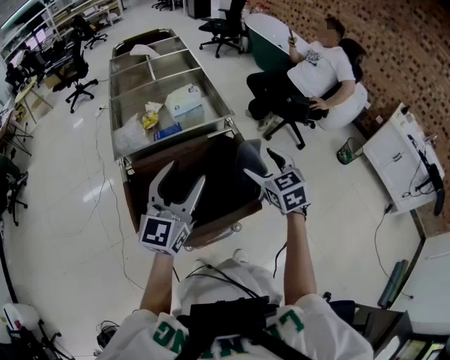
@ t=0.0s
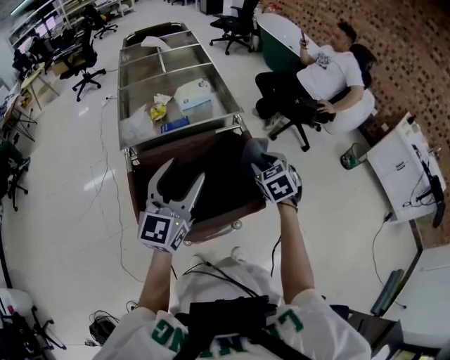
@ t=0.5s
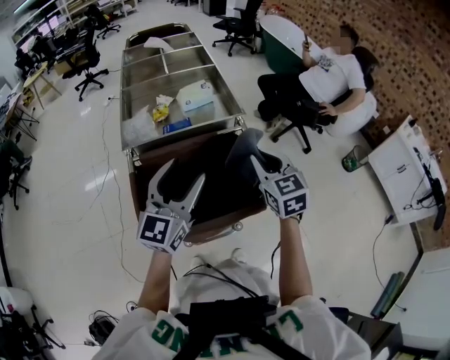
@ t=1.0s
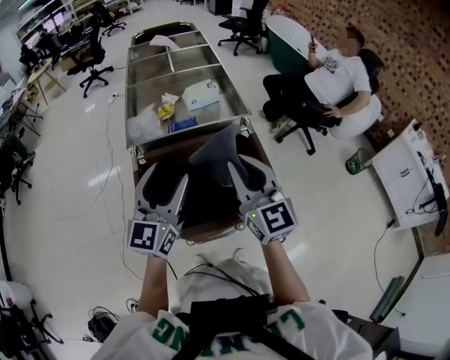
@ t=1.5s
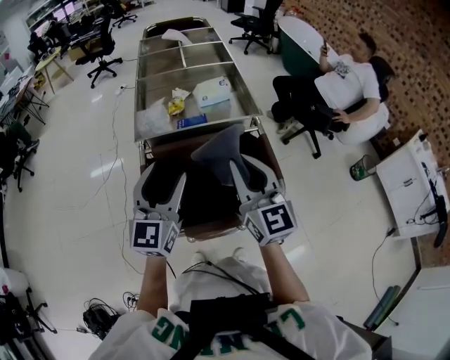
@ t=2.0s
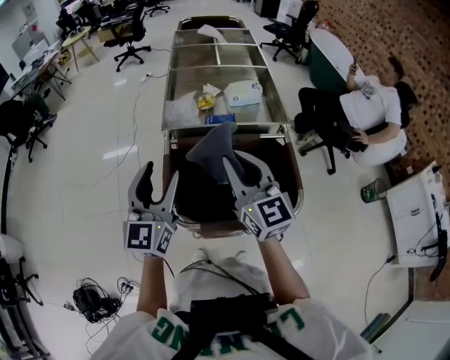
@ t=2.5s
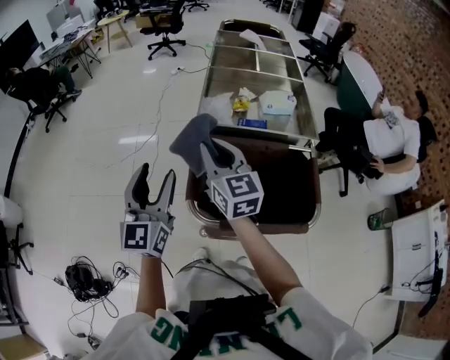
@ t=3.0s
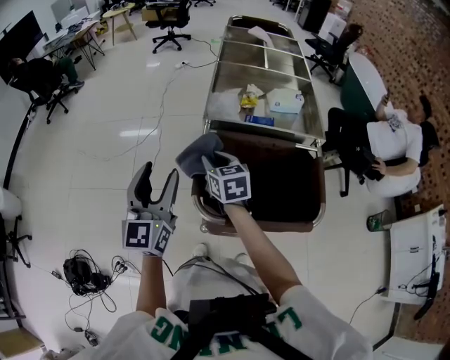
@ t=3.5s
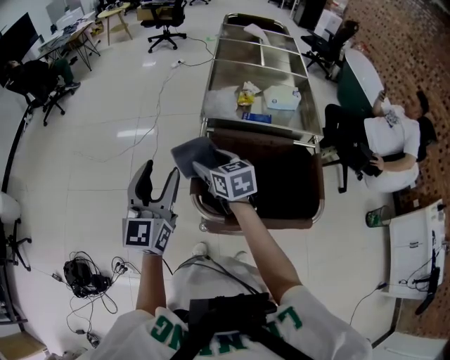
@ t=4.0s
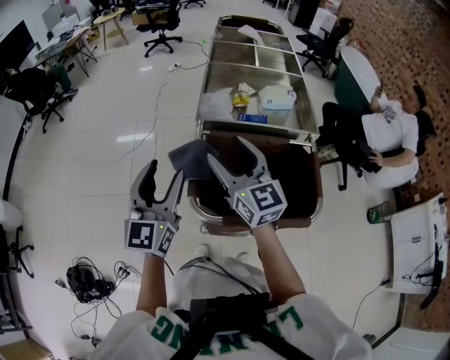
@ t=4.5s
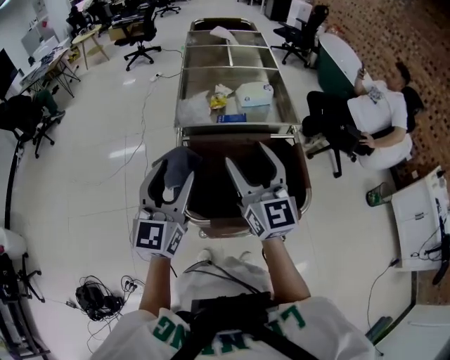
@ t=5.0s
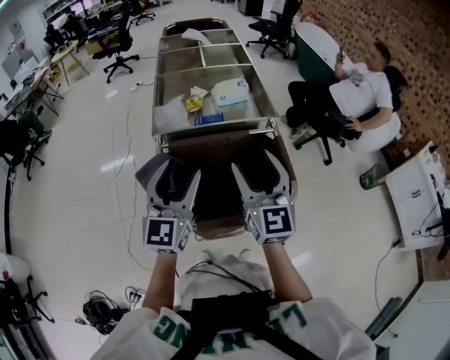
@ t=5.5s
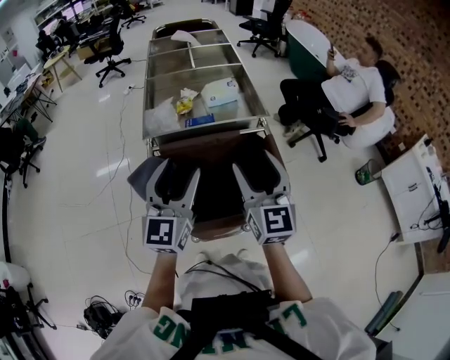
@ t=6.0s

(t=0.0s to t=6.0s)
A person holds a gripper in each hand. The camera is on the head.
t=0.0s - t=2.0s: The right gripper shifts some 20 cm to the left and upward, angles its fingers upward, by about 40 degrees, and closes up. Meanwhile the left gripper shifts about 10 cm to the left.
t=2.0s - t=4.0s: The right gripper ends up about 30 cm from where it was, tilts its fingers about 40 degrees downward, and opens up; the left gripper moves approximately 20 cm, and turns by roughly 20 degrees.
t=4.0s - t=6.0s: The right gripper moves some 30 cm, and tips its fingers upward by about 30 degrees. The left gripper ends up approximately 20 cm from where it was, and turns by roughly 20 degrees.

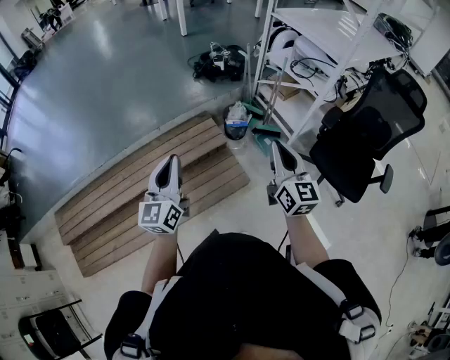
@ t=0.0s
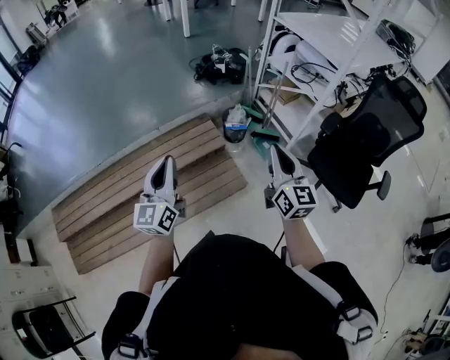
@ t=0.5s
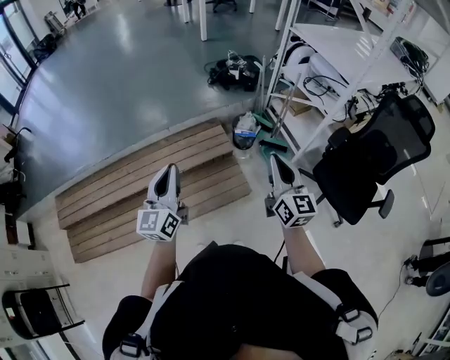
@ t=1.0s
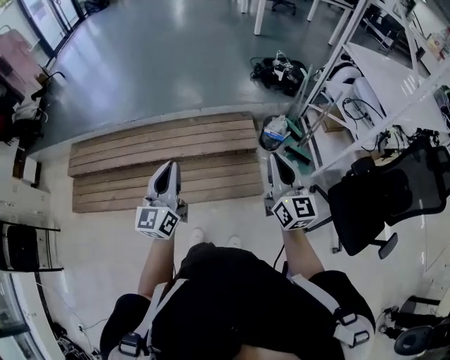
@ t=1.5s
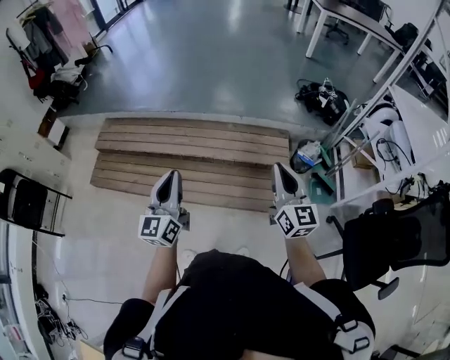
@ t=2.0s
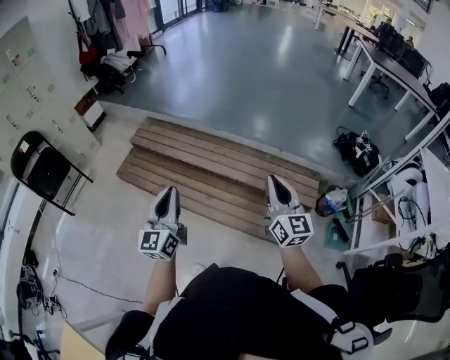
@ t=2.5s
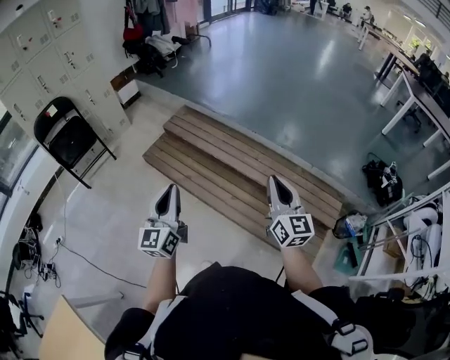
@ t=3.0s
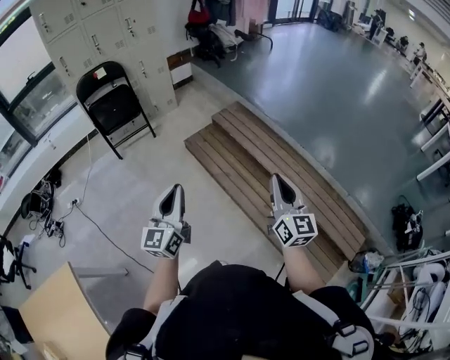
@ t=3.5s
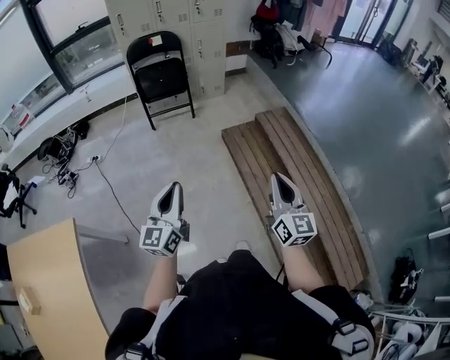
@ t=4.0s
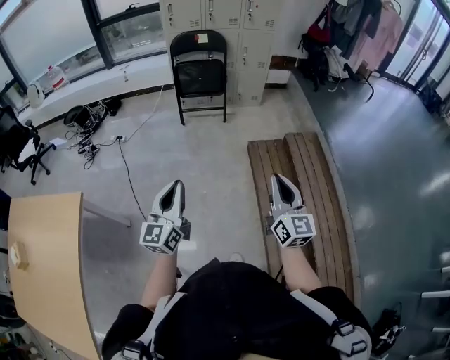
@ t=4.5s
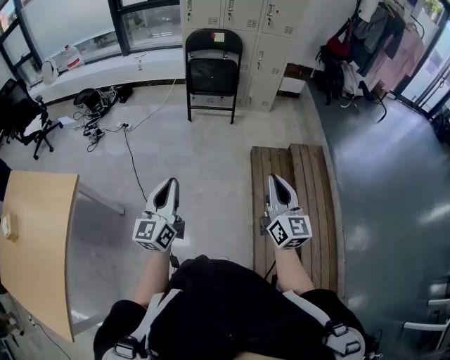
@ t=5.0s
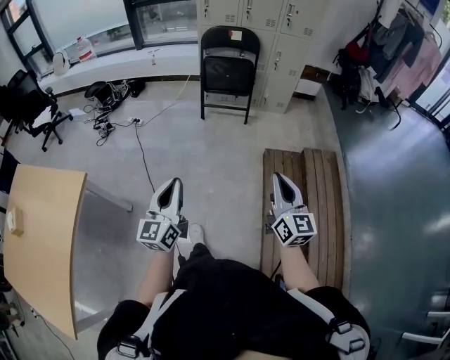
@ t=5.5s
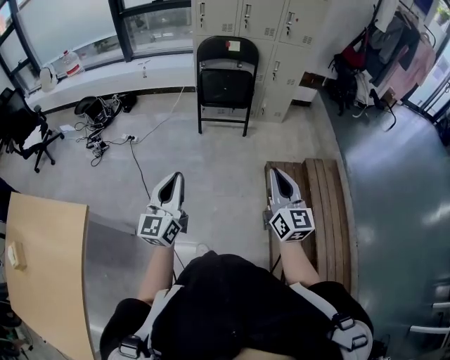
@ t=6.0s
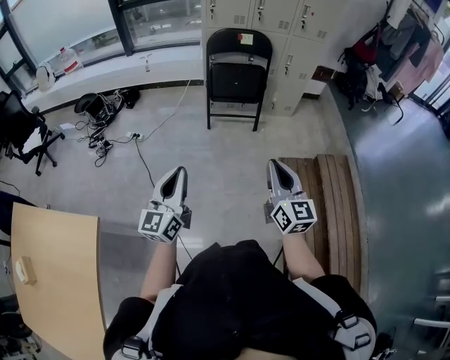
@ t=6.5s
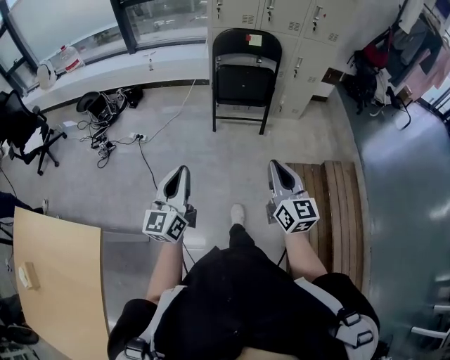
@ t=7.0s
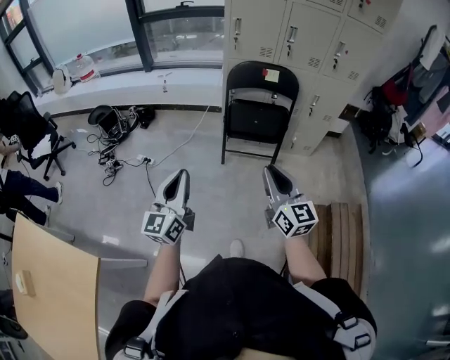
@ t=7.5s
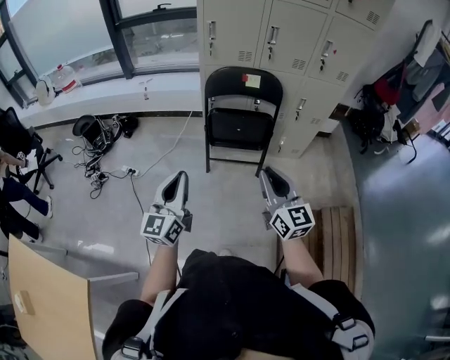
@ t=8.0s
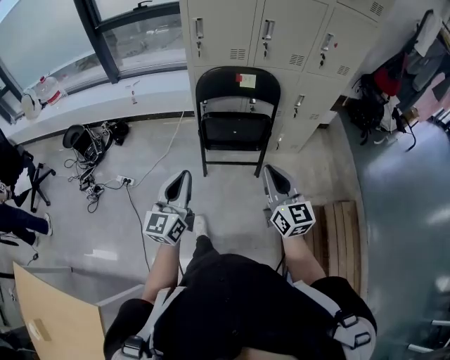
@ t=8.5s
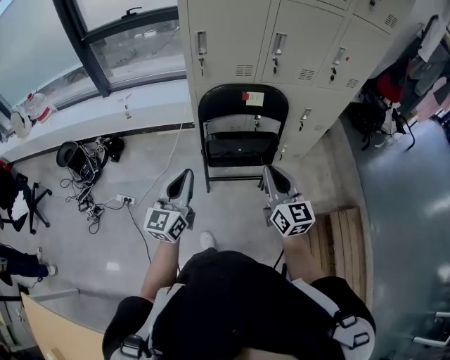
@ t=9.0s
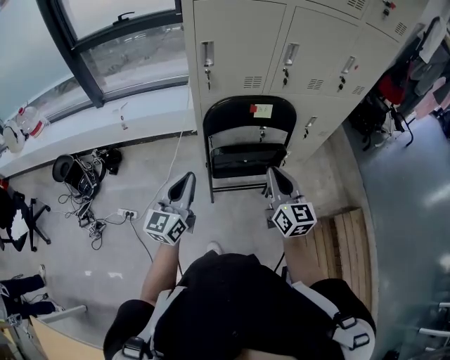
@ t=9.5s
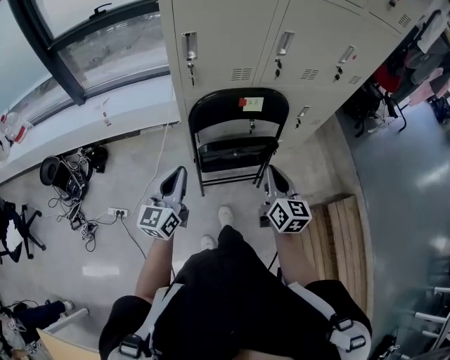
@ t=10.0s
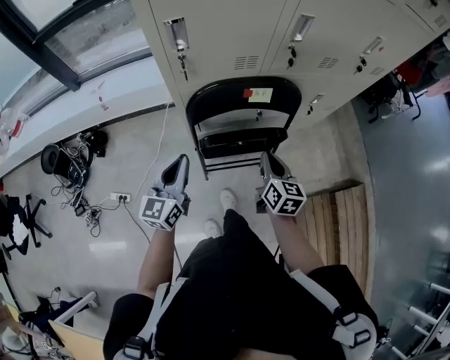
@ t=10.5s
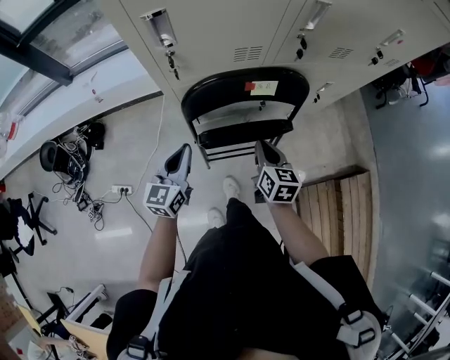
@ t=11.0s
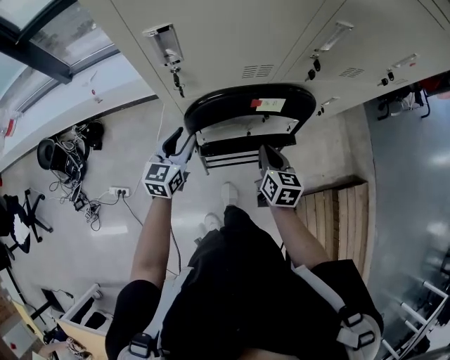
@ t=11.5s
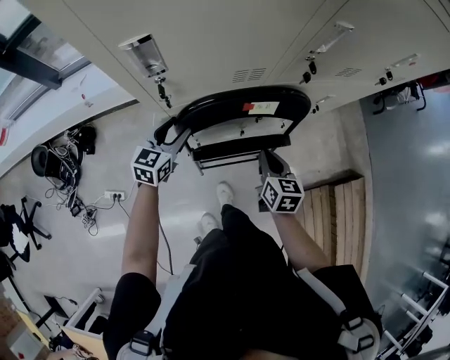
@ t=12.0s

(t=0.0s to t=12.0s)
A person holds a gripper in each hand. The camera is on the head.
t=0.0s - t=2.0s: The left gripper changes place by roughly 25 cm, and rotates some 40 degrees, while the right gripper moves some 20 cm, and swivels some 40 degrees.
t=2.0s - t=4.0s: Both grippers are carried roughly 60 cm. The right gripper turns by approximately 60 degrees. The left gripper rotates approximately 60 degrees.
t=4.0s - t=6.0s: Both grippers move forward and to the left, roughly 25 cm. The right gripper rotates roughly 20 degrees.
t=6.0s - t=8.0s: The two grippers go some 40 cm forward.
t=8.0s - t=10.0s: Both grippers travel together forward, some 35 cm. The right gripper rotates some 30 degrees. The left gripper swivels about 20 degrees.
t=10.0s - t=12.0s: The two grippers go about 25 cm forward and downward. The right gripper changes its angle by some 20 degrees. Meanwhile the left gripper turns by about 30 degrees, and opens.

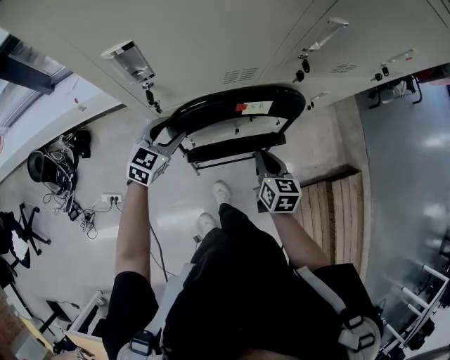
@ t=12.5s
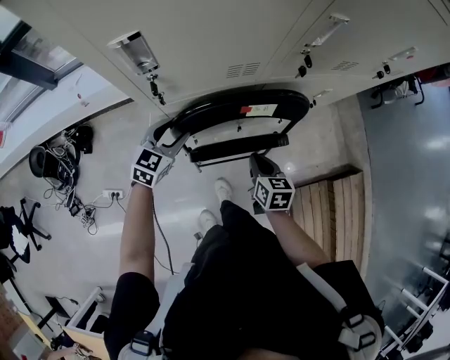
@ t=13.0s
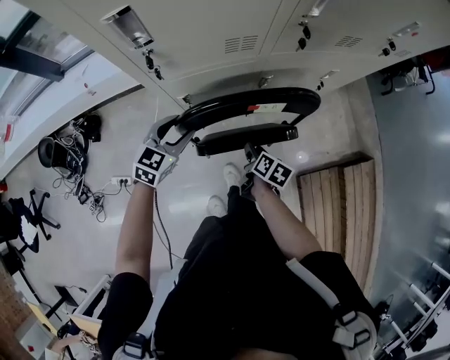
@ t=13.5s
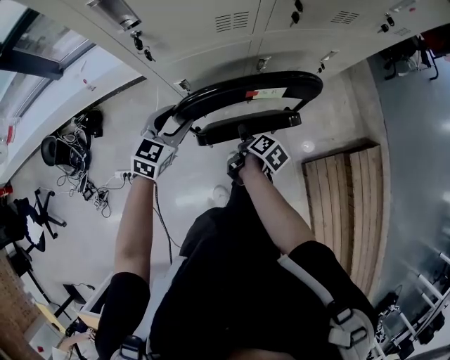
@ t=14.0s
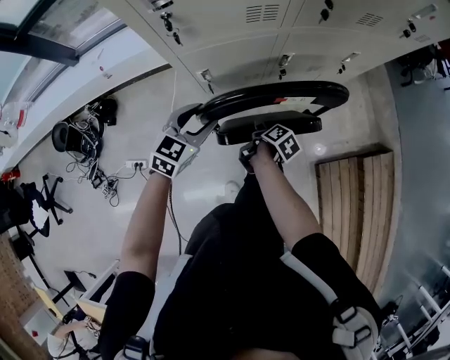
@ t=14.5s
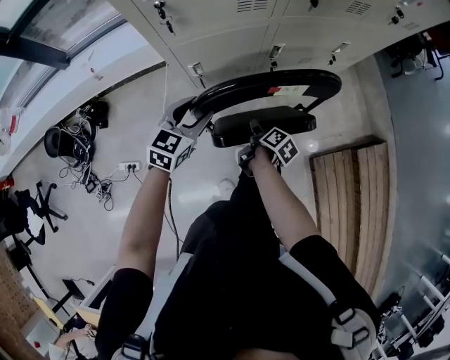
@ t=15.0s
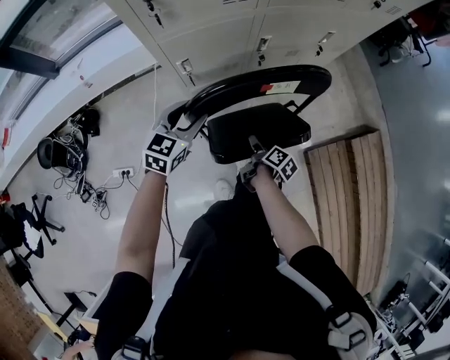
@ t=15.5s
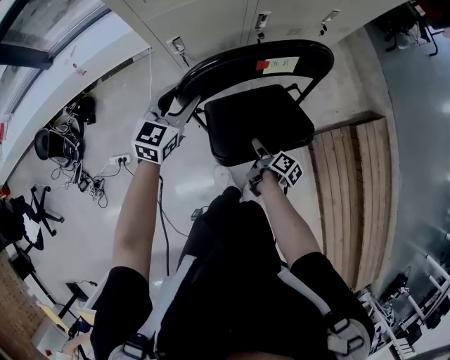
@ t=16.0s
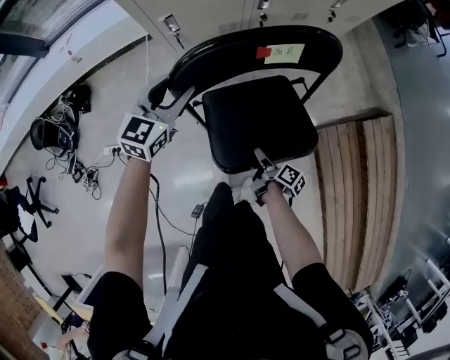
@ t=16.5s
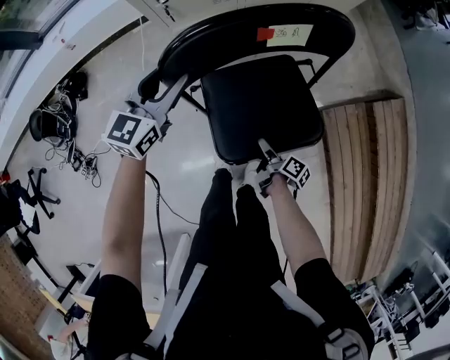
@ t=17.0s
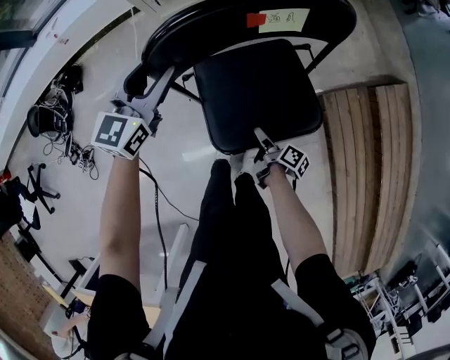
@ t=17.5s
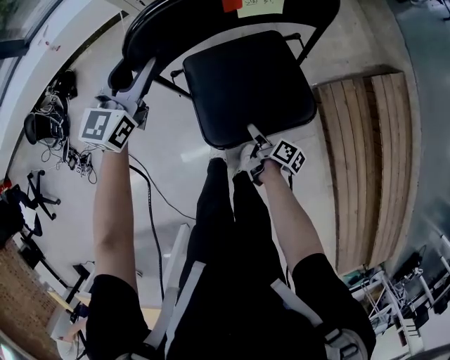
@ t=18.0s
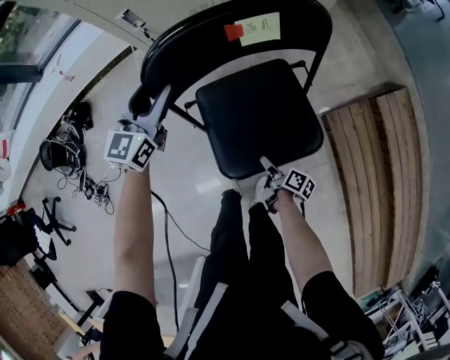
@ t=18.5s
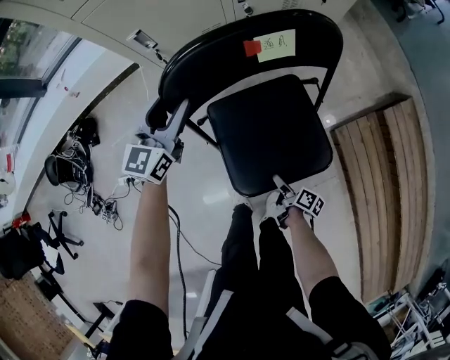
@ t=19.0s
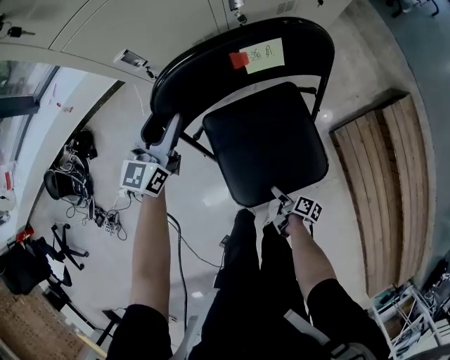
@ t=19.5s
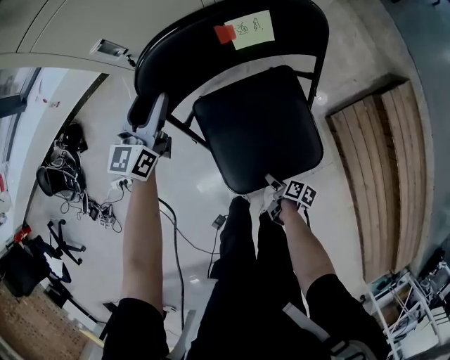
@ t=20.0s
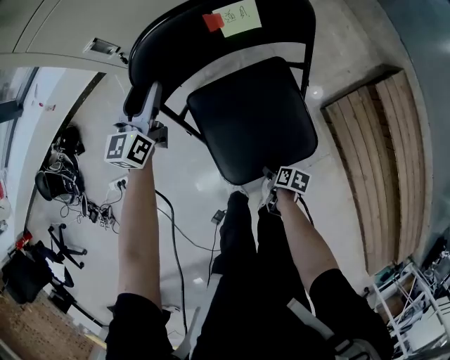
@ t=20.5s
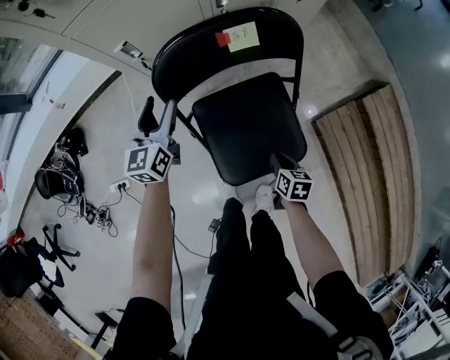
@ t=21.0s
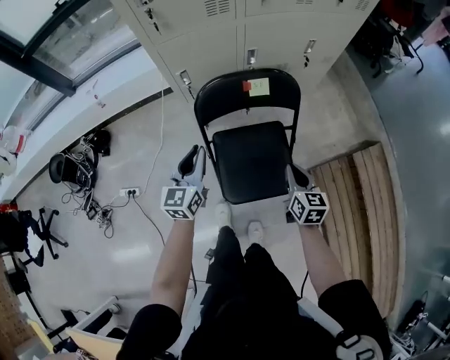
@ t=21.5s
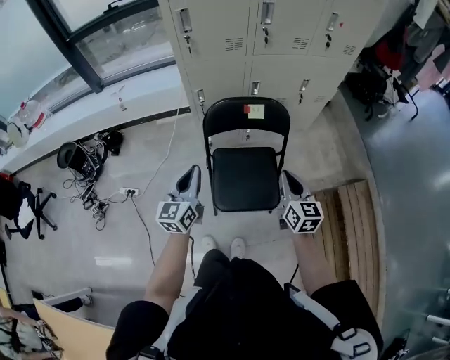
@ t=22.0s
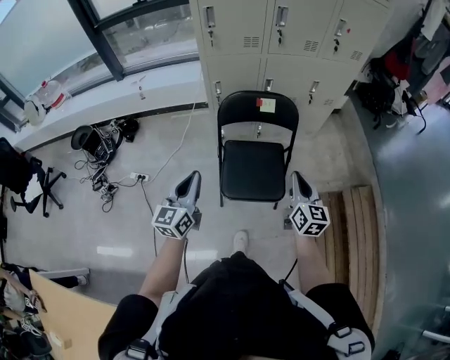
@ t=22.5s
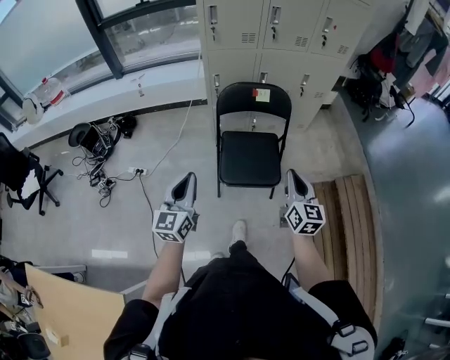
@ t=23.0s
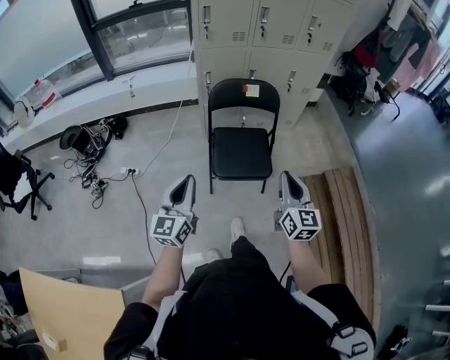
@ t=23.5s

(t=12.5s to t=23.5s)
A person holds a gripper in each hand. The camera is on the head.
t=12.5s - t=14.5s: The left gripper shifts approximately 10 cm backward; the right gripper goes about 15 cm downward and backward, rolls clockwise, seen from behind, by about 60 degrees, and opens.
t=14.5s - t=16.0s: The right gripper is displaced backward and to the right by roughly 20 cm.
t=16.0s - t=18.0s: The left gripper travels backward by some 5 cm; the right gripper heads backward and downward, covering some 20 cm.
t=18.0s - t=20.0s: The right gripper moves downward, roughly 10 cm, and turns by some 20 degrees; the left gripper shifts some 15 cm forward and downward.
t=20.0s - t=21.5s: The right gripper shifts about 40 cm upward, twists some 60 degrees counterclockwise, seen from behind, and closes its fingers; the left gripper heads backward and upward, covering roughly 25 cm, and closes up.
t=21.5s - t=23.5s: The two grippers go approximately 40 cm backward and upward. The right gripper changes its angle by some 30 degrees.
